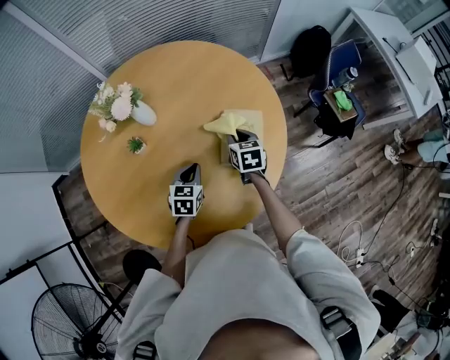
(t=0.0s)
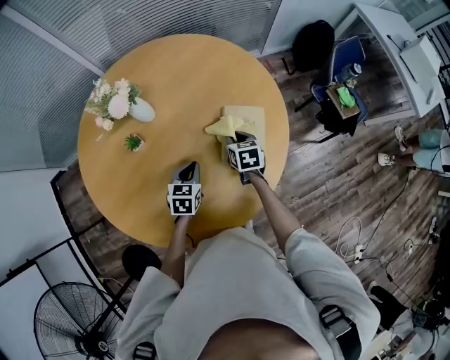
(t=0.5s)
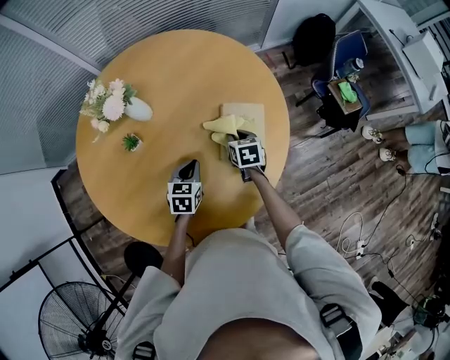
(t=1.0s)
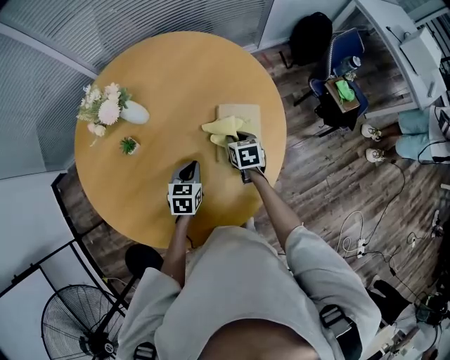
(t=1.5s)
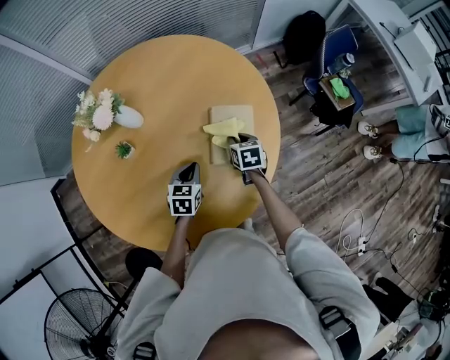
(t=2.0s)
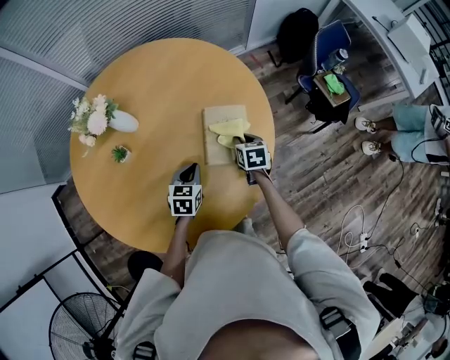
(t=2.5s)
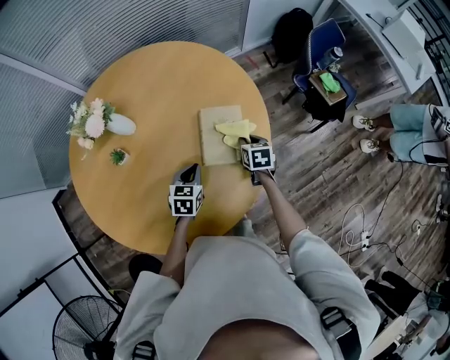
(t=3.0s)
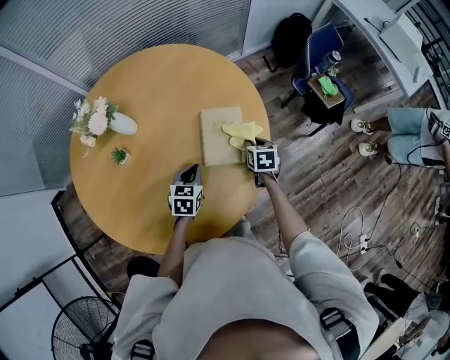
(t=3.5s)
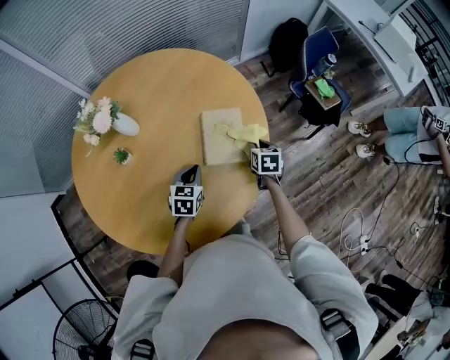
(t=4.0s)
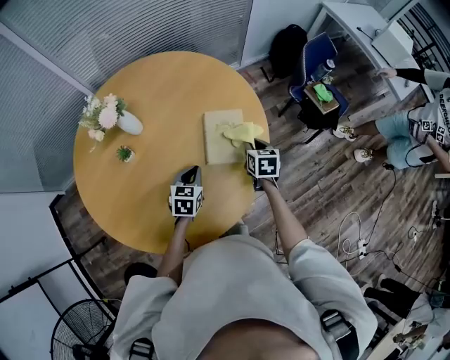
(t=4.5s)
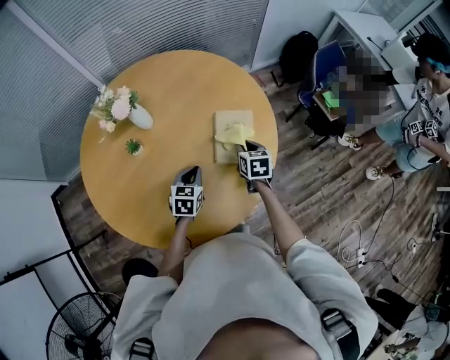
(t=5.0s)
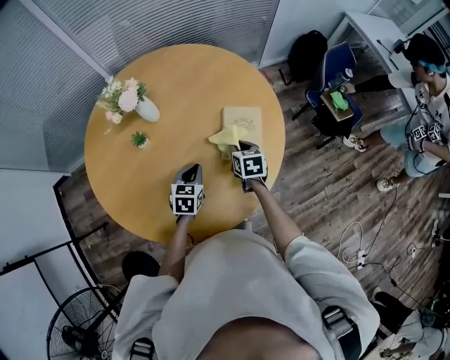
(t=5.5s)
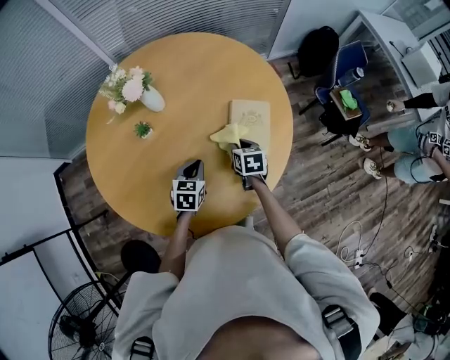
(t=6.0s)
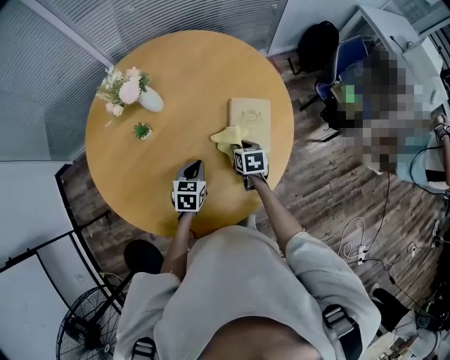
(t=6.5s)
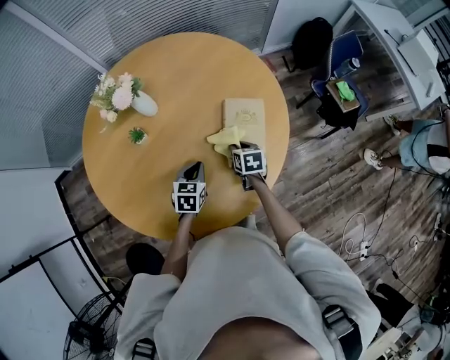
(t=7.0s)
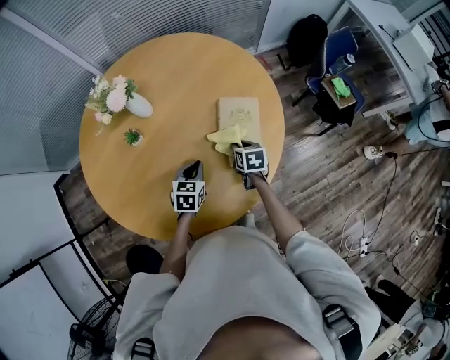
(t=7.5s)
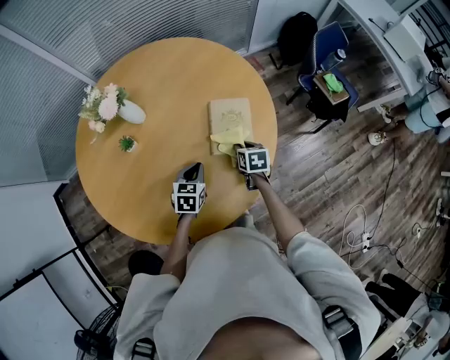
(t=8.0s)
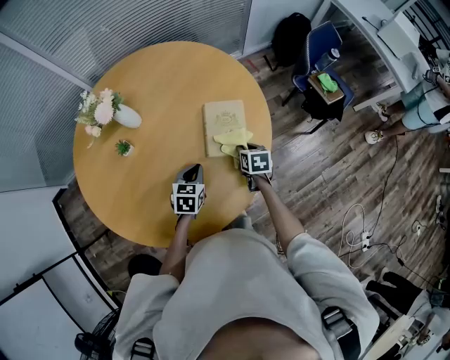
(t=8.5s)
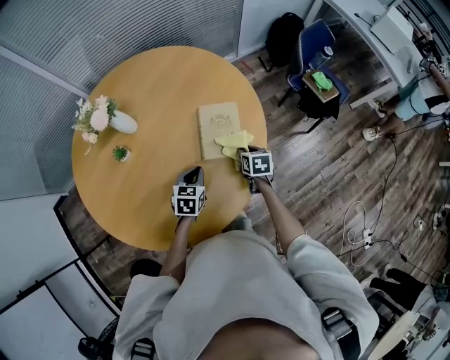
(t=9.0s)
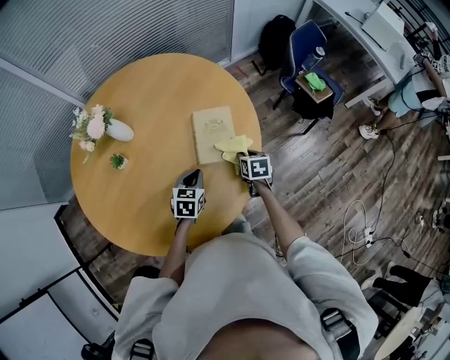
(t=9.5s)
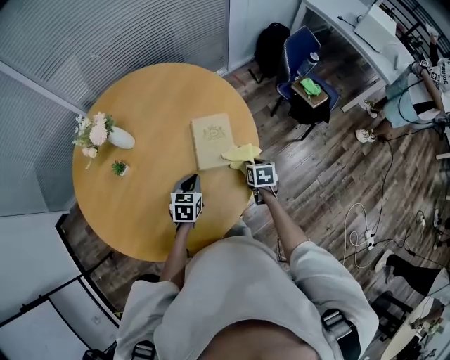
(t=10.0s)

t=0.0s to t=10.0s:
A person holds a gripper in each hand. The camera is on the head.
t=0.0s to t=2.0s: The right gripper goes some 5 cm downward.
t=2.0s to t=4.0s: The right gripper moves to the right, roughly 10 cm.
t=4.0s to t=6.0s: The left gripper goes approximately 10 cm to the left. Meanwhile the right gripper travels to the left by approximately 15 cm.
t=6.0s to t=8.0s: Both grippers move to the right, roughly 5 cm.
t=8.0s to t=10.0s: The right gripper travels to the right by some 10 cm.

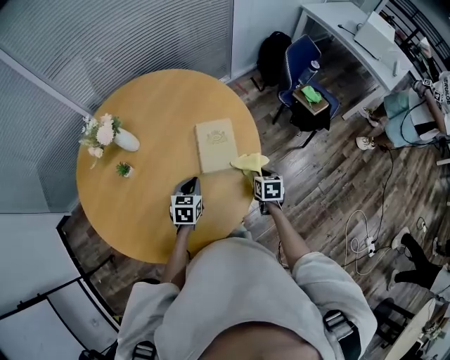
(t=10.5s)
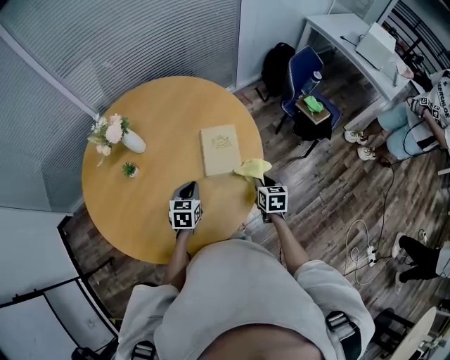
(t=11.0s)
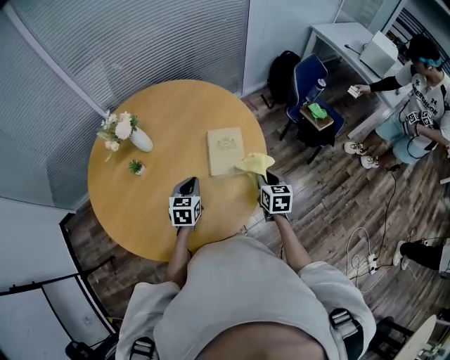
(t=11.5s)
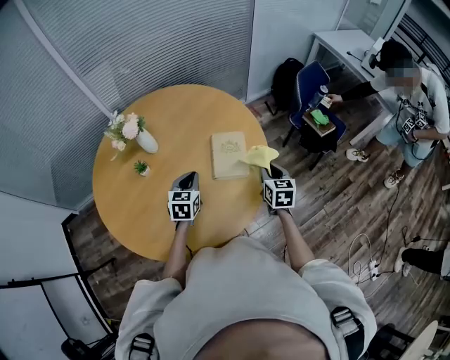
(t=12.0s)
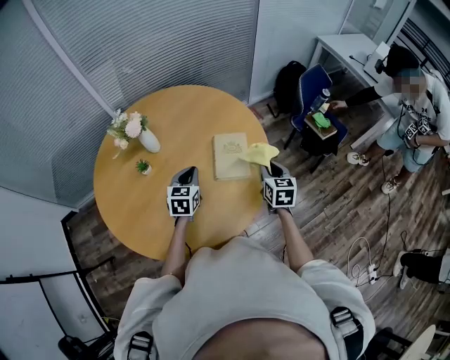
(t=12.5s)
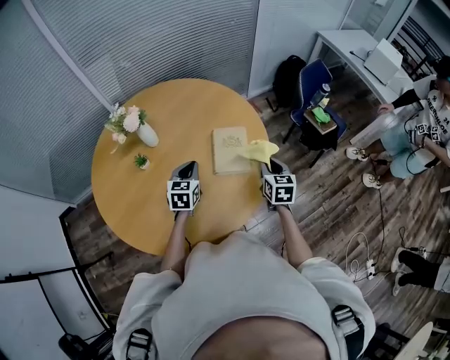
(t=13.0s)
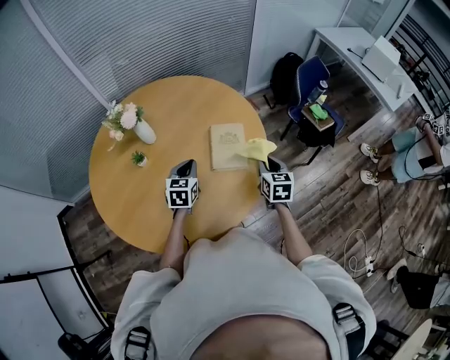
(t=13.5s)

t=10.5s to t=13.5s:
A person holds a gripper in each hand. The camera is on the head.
t=10.5s to t=12.0s: The right gripper travels upward by approximately 15 cm, and turns by approximately 20 degrees. The left gripper is displaced upward by some 10 cm.
t=12.0s to t=13.5s: The grippers move only a little.

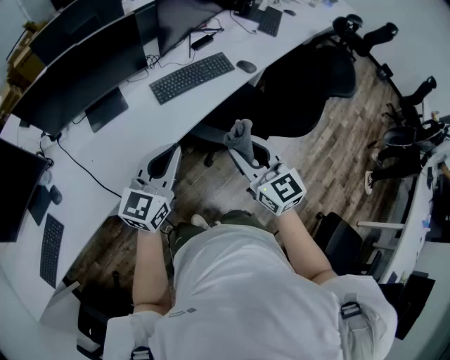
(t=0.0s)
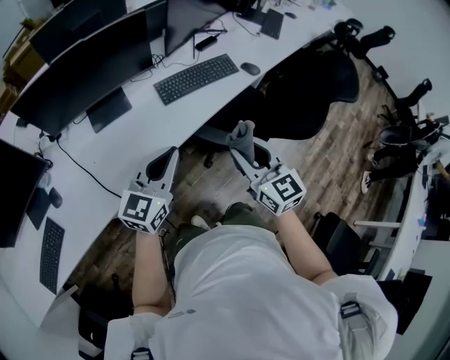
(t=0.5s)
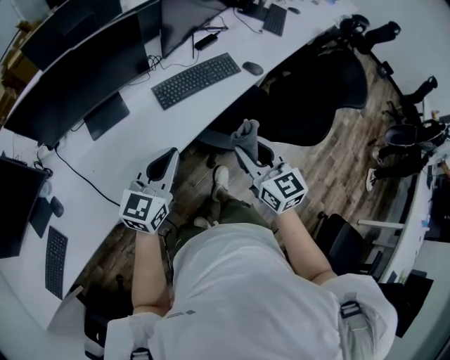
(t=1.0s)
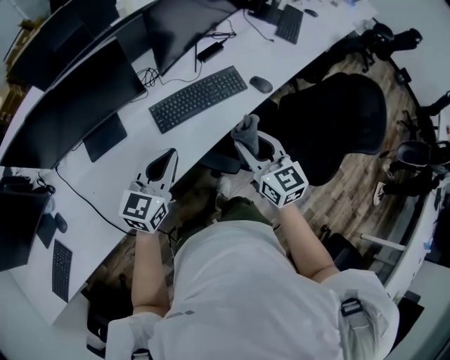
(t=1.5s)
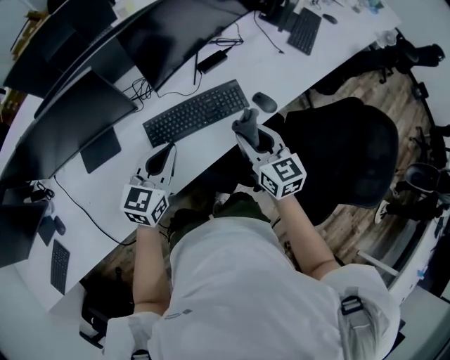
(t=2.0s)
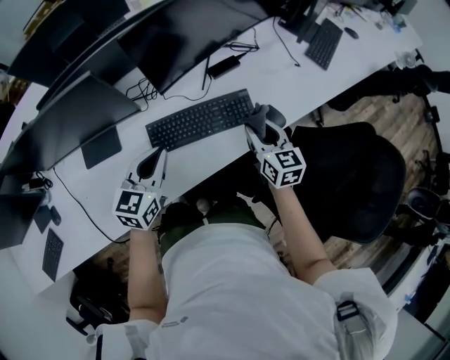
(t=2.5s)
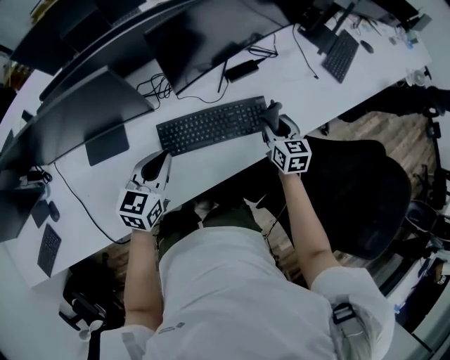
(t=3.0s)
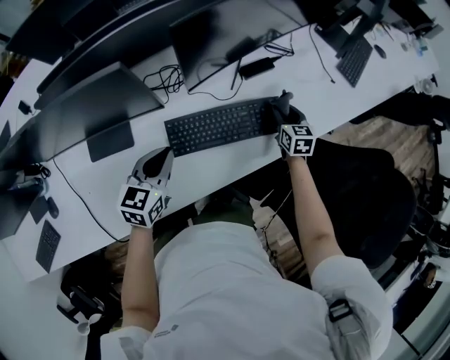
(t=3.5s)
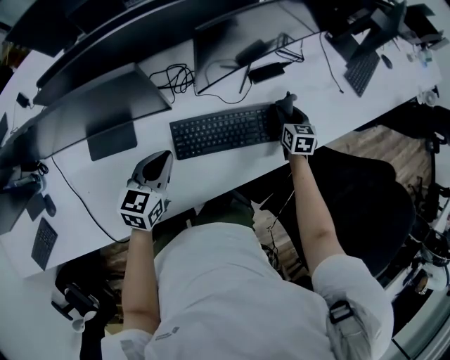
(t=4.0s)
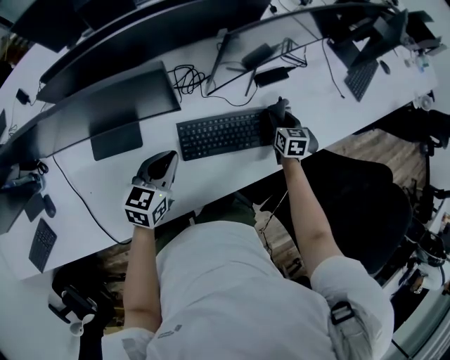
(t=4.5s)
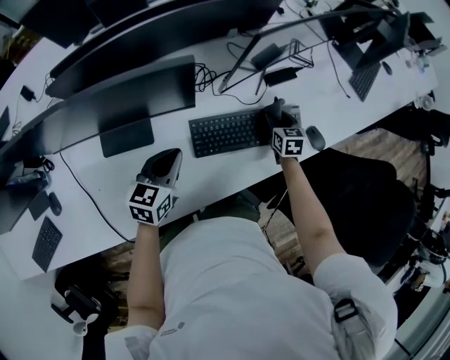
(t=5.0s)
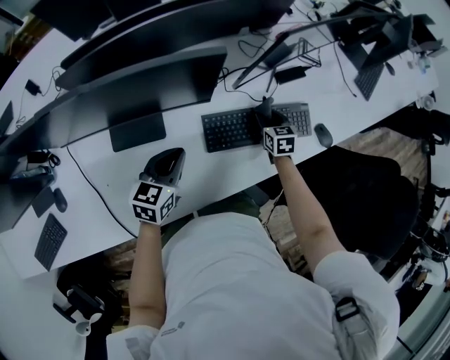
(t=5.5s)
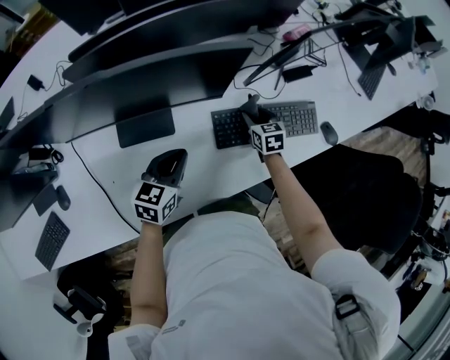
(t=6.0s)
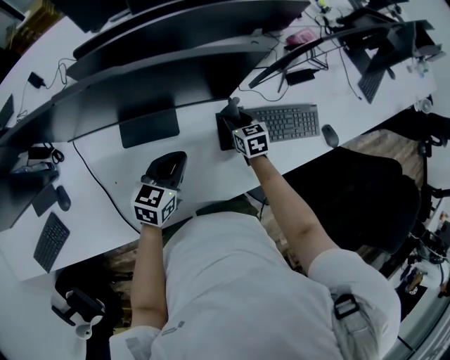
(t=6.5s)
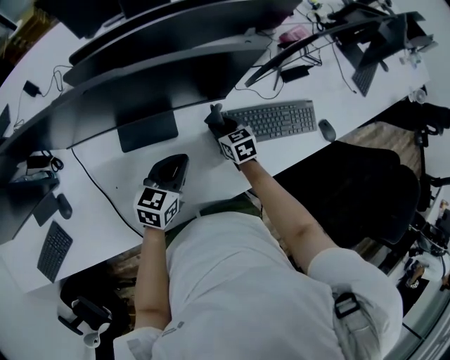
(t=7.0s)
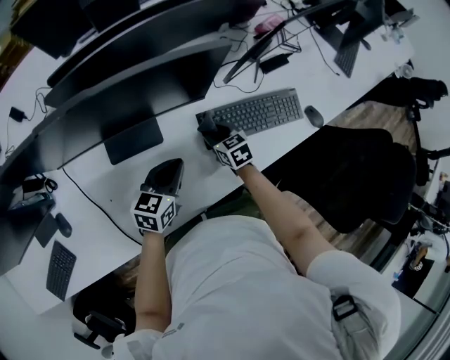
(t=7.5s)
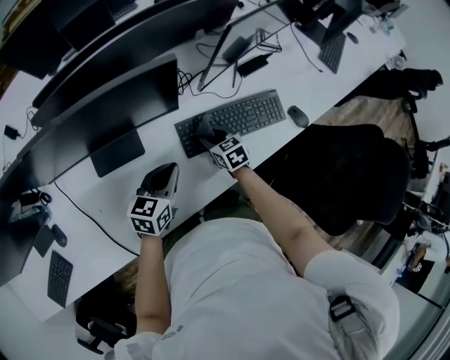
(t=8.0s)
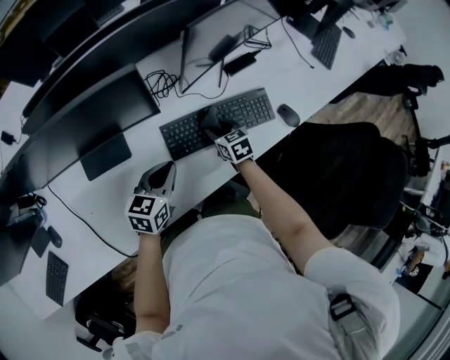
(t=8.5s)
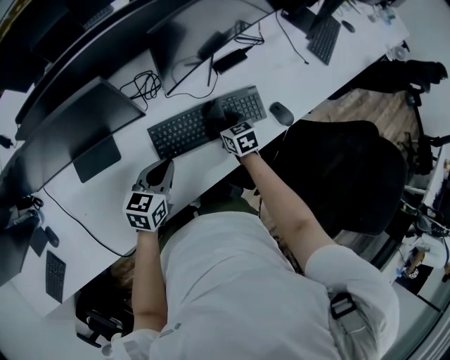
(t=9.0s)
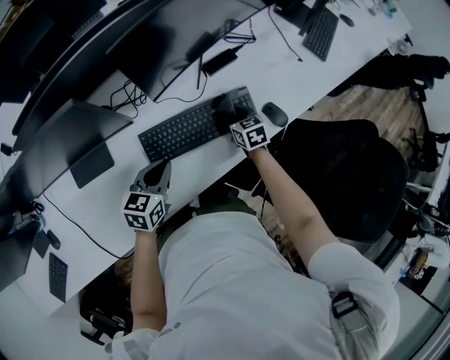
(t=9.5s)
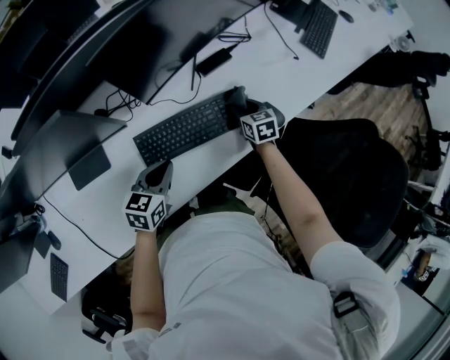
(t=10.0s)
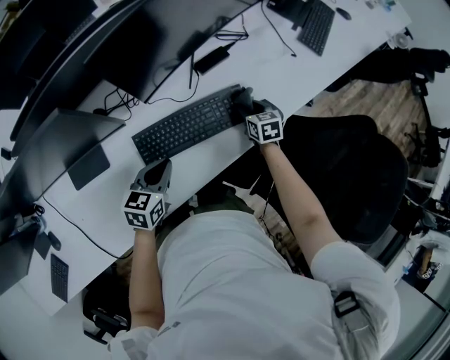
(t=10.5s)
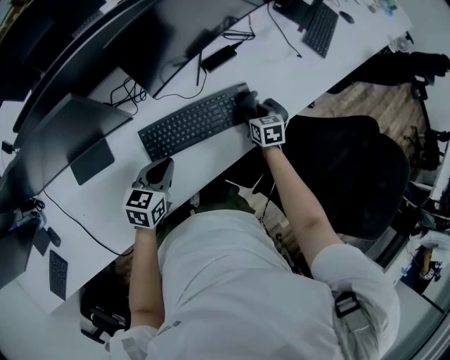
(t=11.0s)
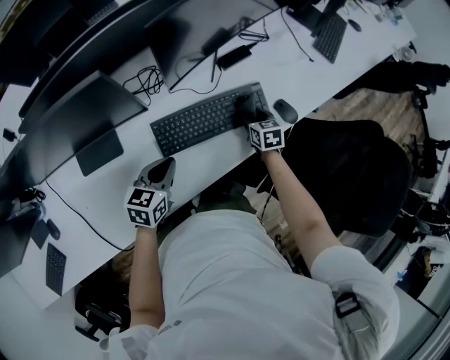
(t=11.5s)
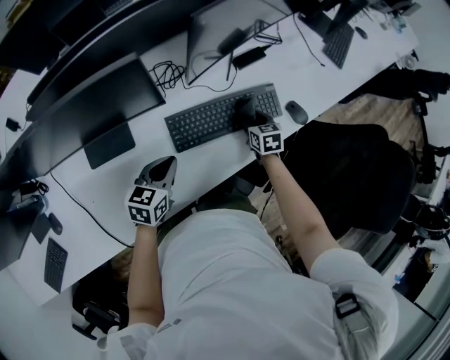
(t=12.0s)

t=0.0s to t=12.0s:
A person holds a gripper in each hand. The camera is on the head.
t=0.0s to t=2.0s: Both grippers travel together forward, approximately 30 cm.
t=2.0s to t=4.0s: The left gripper shifts approximately 20 cm to the left, downward and forward, and rotates approximately 20 degrees. The right gripper is displaced forward and downward by about 30 cm, and swivels some 20 degrees.
t=4.0s to t=6.0s: The left gripper goes approximately 10 cm to the left and backward; the right gripper heads to the left, covering roughly 25 cm.
t=6.0s to t=8.0s: The right gripper moves backward, approximately 5 cm, and travels to the left and back again, roughly 15 cm each way, while the left gripper goes approximately 5 cm to the right.
t=8.0s to t=10.0s: The left gripper heads to the right, covering roughly 15 cm; the right gripper travels to the right by approximately 25 cm.
t=10.0s to t=12.0s: The right gripper is displaced to the left and backward by about 10 cm; the left gripper is displaced to the left by roughly 10 cm.

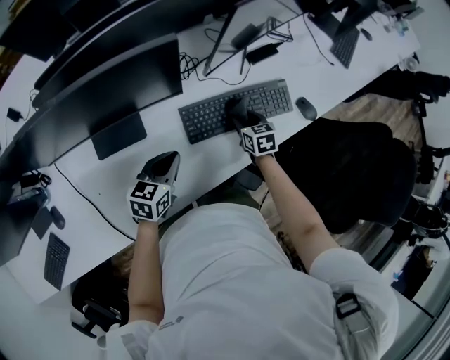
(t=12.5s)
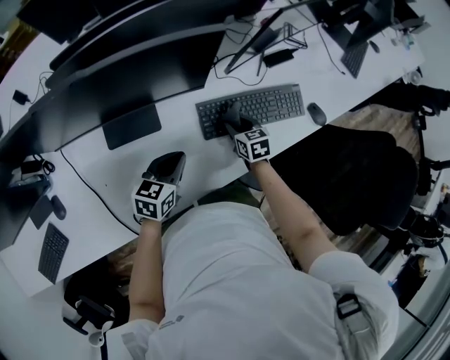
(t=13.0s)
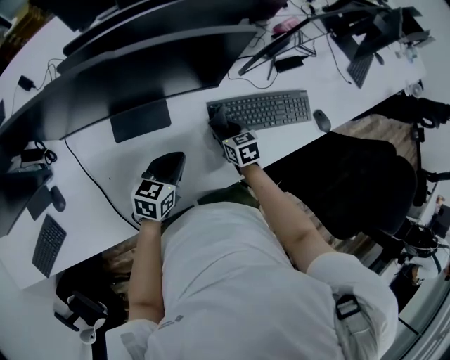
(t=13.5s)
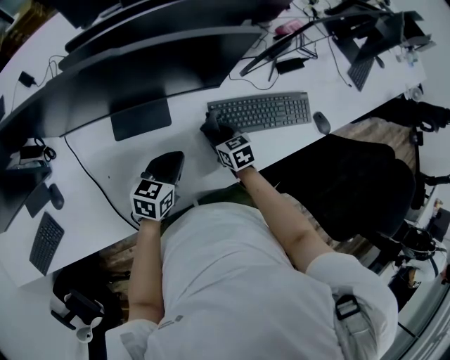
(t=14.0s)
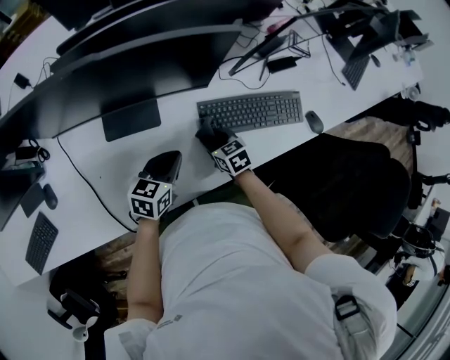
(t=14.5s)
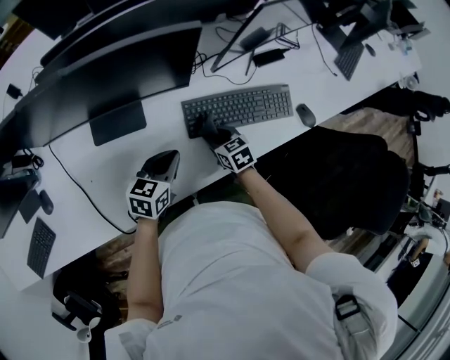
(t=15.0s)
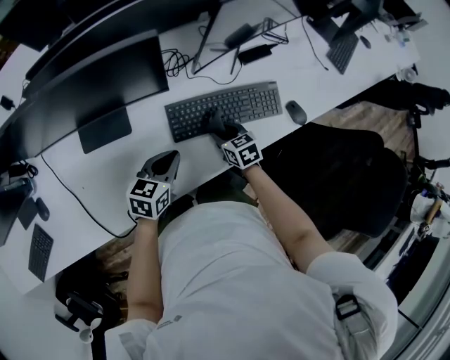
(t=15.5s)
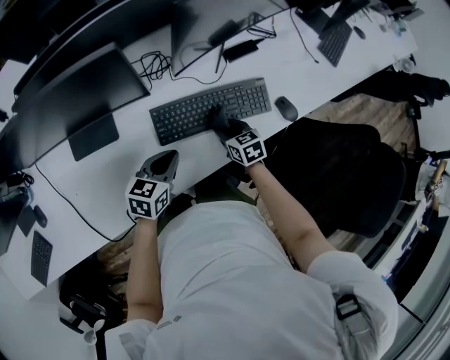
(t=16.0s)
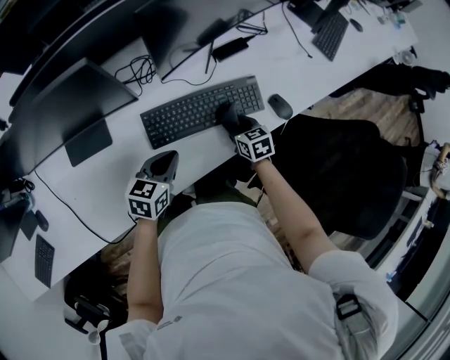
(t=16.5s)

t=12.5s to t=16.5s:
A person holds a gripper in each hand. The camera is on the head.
t=12.5s to t=14.5s: The right gripper goes some 20 cm to the left and backward, and rotates about 20 degrees.
t=14.5s to t=16.5s: The left gripper shifts about 15 cm to the right; the right gripper heads to the right, covering some 25 cm.
